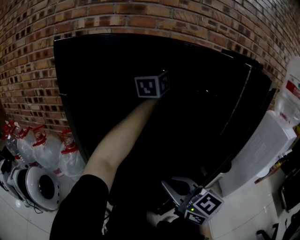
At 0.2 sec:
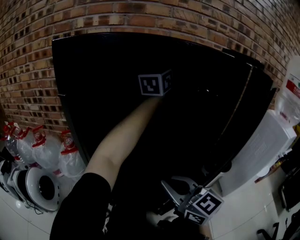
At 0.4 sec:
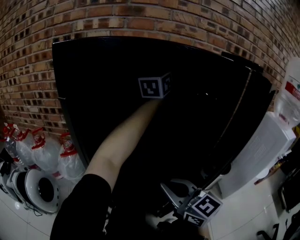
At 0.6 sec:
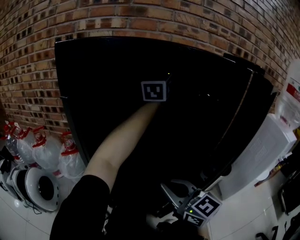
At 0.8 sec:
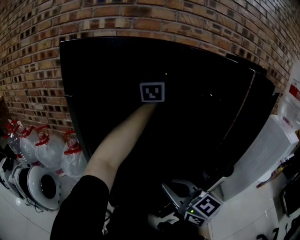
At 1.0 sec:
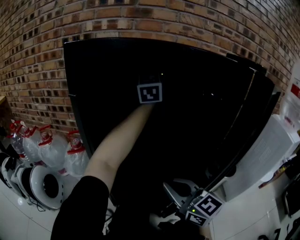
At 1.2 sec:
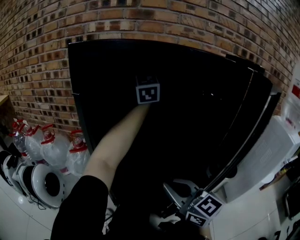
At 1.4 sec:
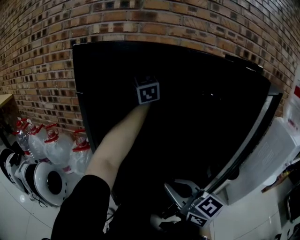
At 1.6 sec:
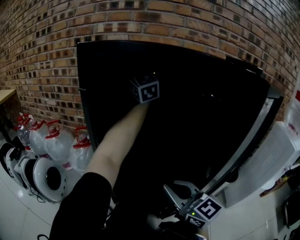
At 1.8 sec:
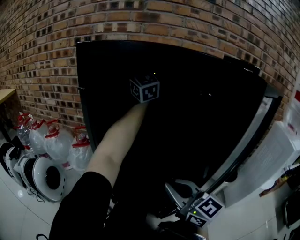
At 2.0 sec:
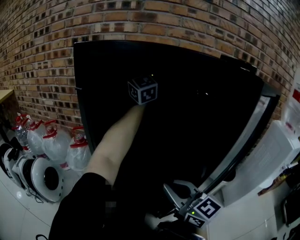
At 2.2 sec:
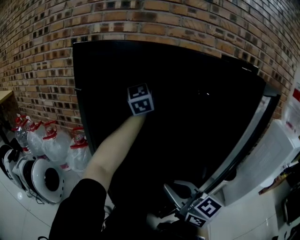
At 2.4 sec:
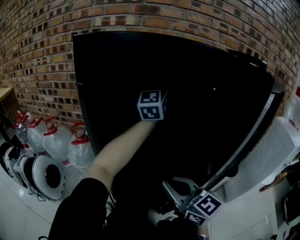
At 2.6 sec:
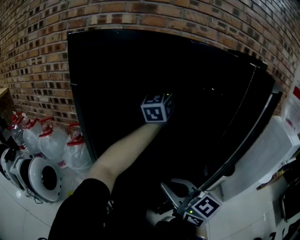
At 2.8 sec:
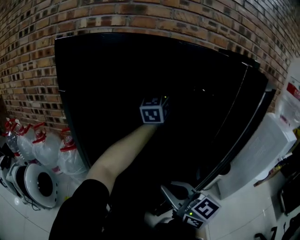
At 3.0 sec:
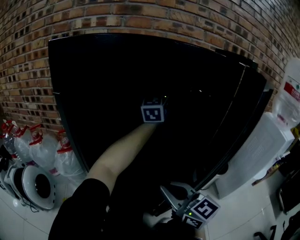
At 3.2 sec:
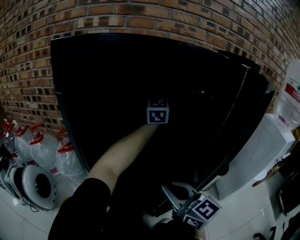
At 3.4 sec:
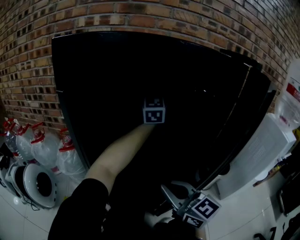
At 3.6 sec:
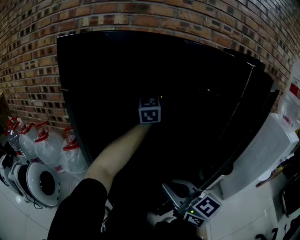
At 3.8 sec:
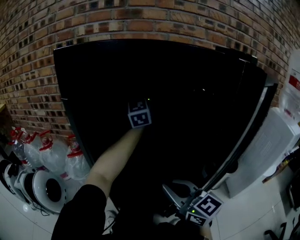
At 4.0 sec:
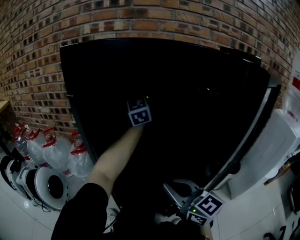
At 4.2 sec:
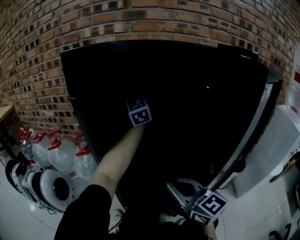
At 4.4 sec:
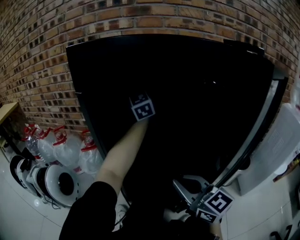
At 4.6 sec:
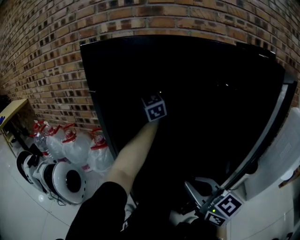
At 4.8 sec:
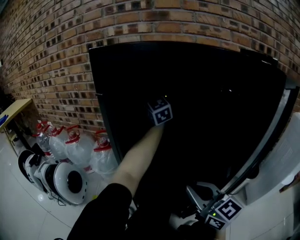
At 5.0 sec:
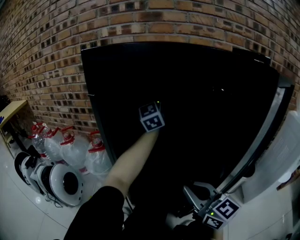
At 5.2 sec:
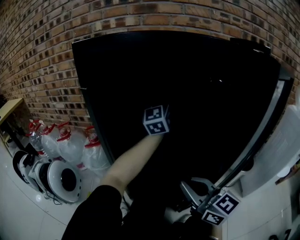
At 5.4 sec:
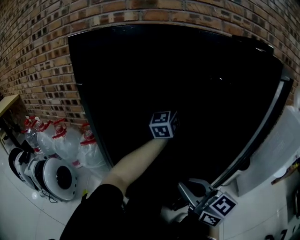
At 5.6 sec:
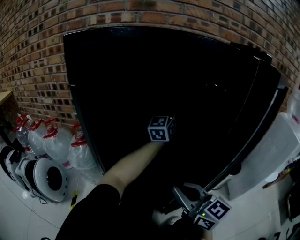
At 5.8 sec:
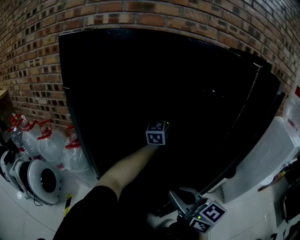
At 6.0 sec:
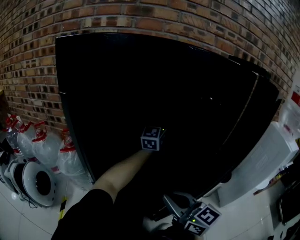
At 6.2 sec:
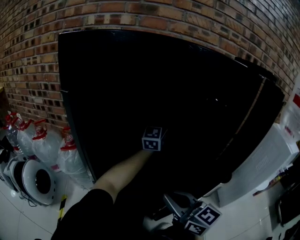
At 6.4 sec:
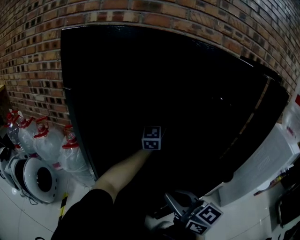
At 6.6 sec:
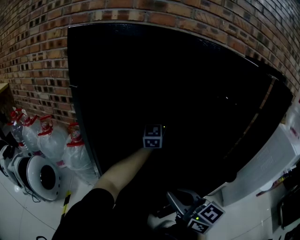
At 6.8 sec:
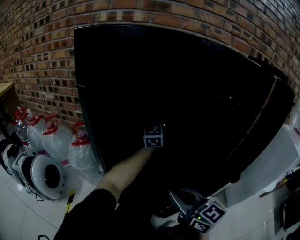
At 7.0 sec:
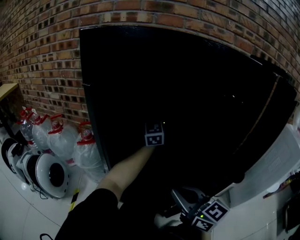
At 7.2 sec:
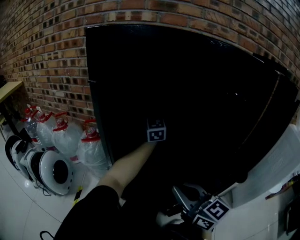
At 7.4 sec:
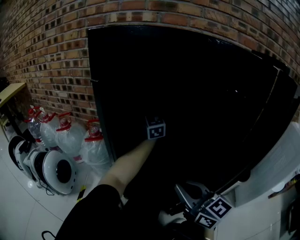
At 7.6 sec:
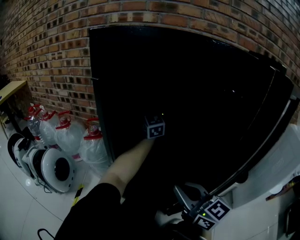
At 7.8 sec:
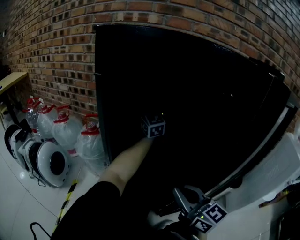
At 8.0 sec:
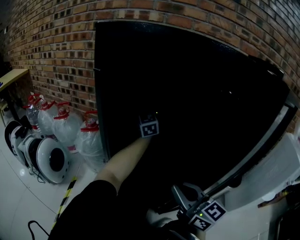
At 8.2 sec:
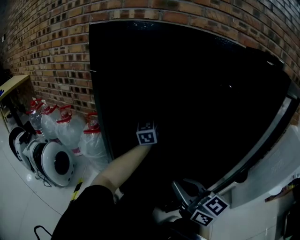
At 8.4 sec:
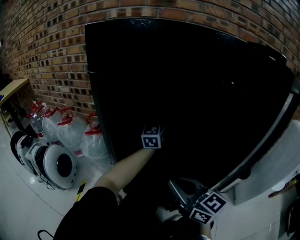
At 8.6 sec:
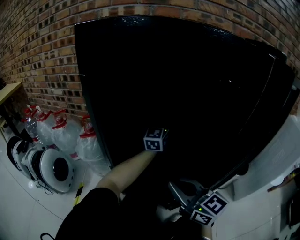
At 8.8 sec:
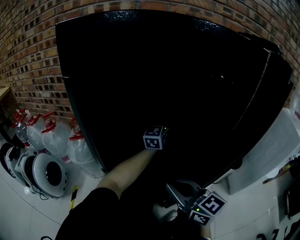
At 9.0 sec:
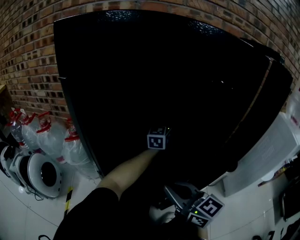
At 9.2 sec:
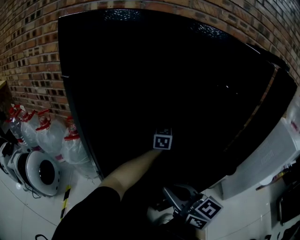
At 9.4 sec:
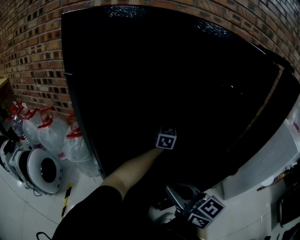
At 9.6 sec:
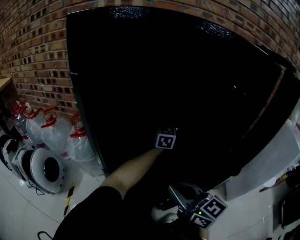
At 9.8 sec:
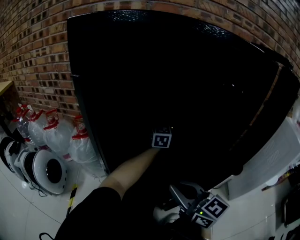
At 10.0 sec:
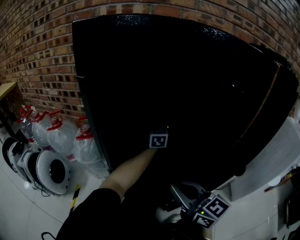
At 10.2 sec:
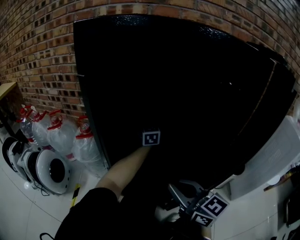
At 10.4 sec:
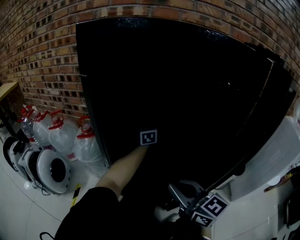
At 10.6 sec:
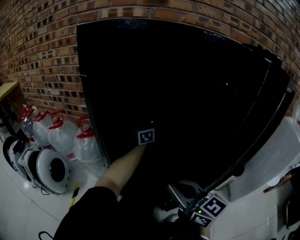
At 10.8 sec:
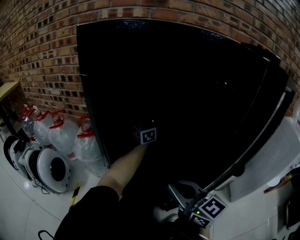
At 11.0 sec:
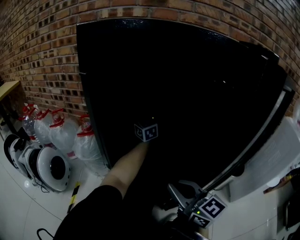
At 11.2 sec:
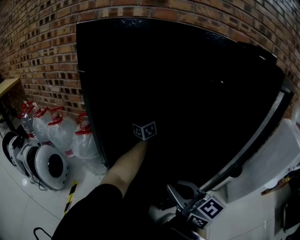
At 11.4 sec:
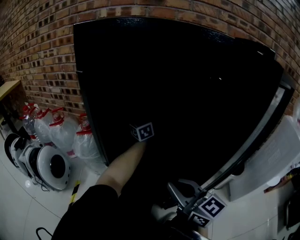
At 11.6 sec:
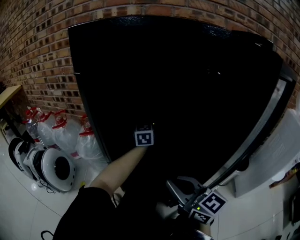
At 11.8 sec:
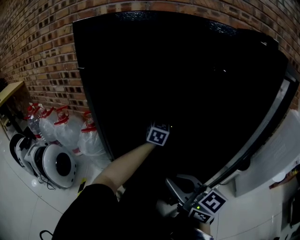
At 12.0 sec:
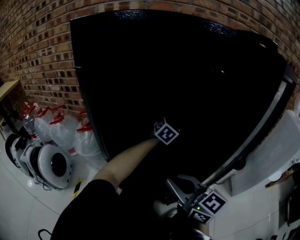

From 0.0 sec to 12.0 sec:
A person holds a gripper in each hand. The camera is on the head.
From 0.0 sec to 1.6 sec: The left gripper moves some 15 cm, and rotates some 50 degrees.
From 1.6 sec to 3.0 sec: The left gripper shifts roughly 20 cm to the right and downward, and turns by about 40 degrees.
From 3.0 sec to 4.4 sec: The left gripper heads to the left, covering about 15 cm, and changes its angle by approximately 30 degrees.
From 4.4 sec to 6.0 sec: The left gripper goes about 20 cm to the right and downward, and rotates roughly 30 degrees.
From 6.0 sec to 7.6 sec: The left gripper shifts approximately 15 cm to the left, and swivels some 40 degrees.
From 7.6 sec to 9.0 sec: The left gripper heads to the right, downward and backward, covering approximately 20 cm, and rotates some 40 degrees.
From 9.0 sec to 10.4 sec: The left gripper moves to the left and forward, approximately 15 cm, and turns by approximately 30 degrees.
From 10.4 sec to 12.0 sec: The left gripper changes place by approximately 20 cm, and swivels roughly 50 degrees.

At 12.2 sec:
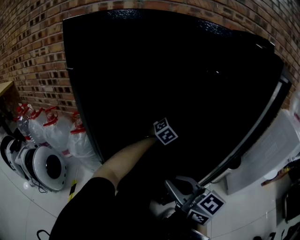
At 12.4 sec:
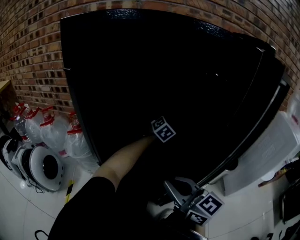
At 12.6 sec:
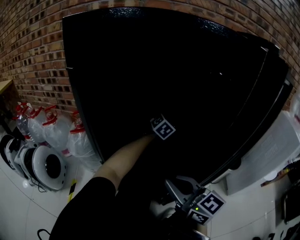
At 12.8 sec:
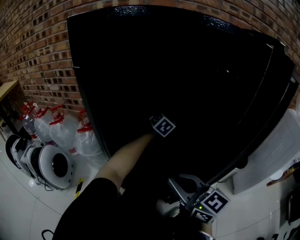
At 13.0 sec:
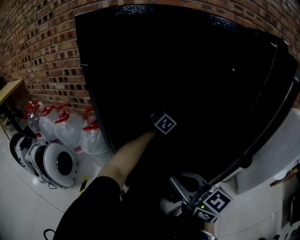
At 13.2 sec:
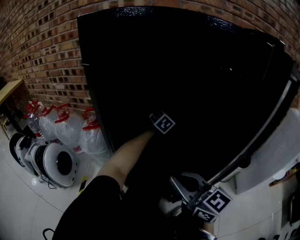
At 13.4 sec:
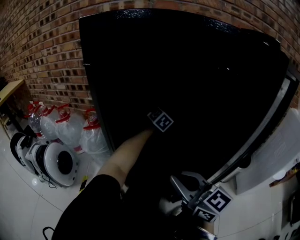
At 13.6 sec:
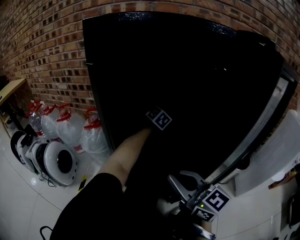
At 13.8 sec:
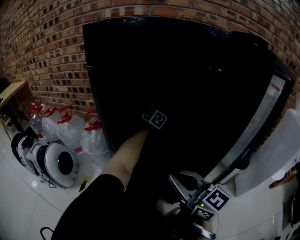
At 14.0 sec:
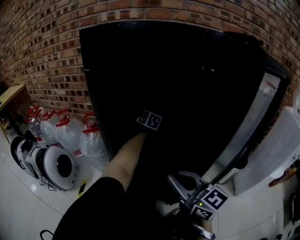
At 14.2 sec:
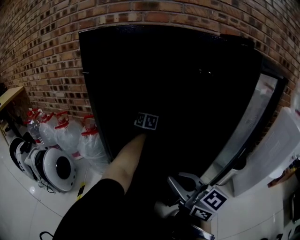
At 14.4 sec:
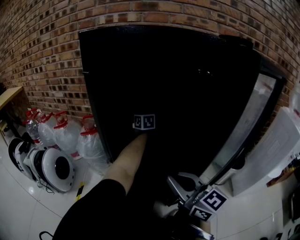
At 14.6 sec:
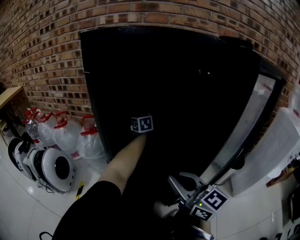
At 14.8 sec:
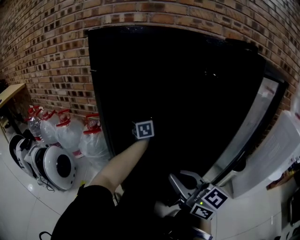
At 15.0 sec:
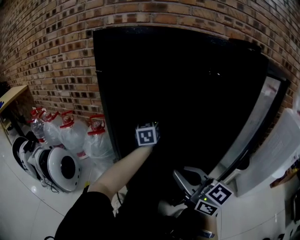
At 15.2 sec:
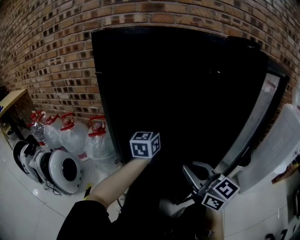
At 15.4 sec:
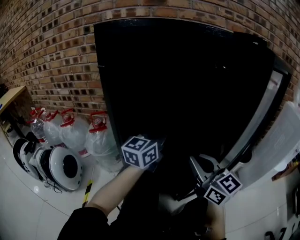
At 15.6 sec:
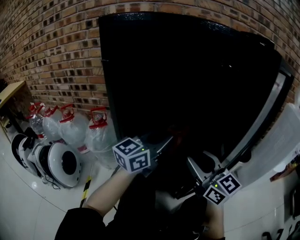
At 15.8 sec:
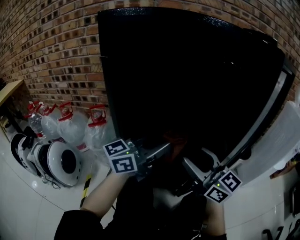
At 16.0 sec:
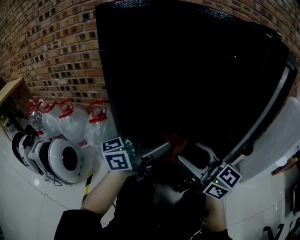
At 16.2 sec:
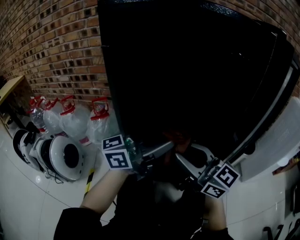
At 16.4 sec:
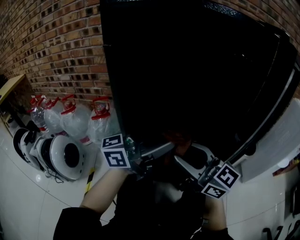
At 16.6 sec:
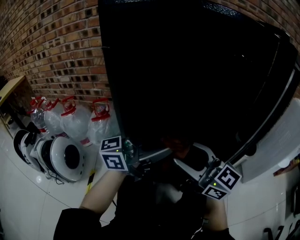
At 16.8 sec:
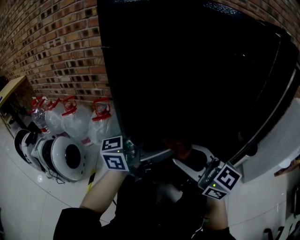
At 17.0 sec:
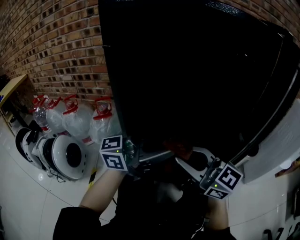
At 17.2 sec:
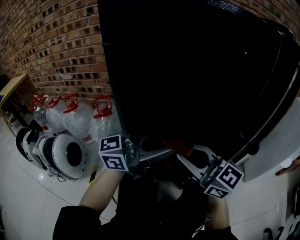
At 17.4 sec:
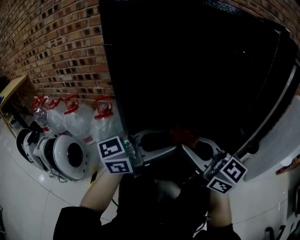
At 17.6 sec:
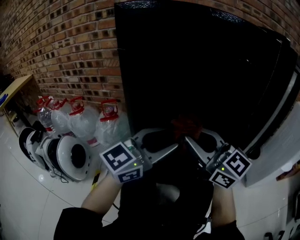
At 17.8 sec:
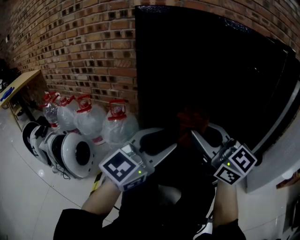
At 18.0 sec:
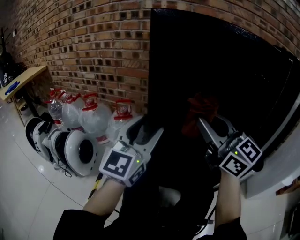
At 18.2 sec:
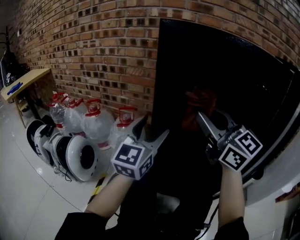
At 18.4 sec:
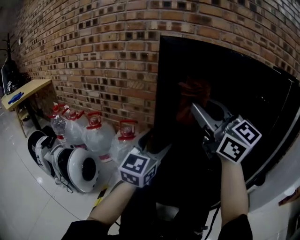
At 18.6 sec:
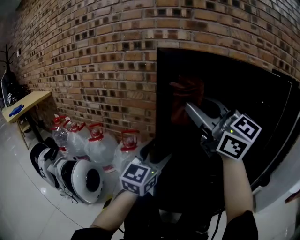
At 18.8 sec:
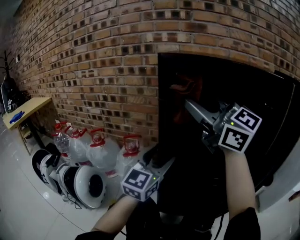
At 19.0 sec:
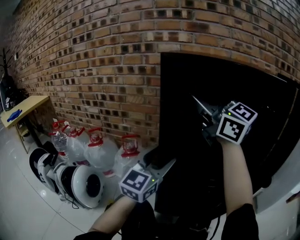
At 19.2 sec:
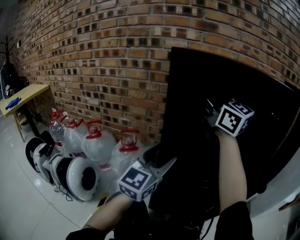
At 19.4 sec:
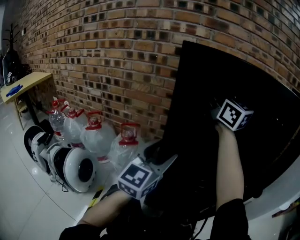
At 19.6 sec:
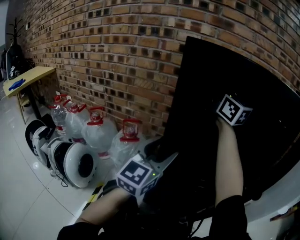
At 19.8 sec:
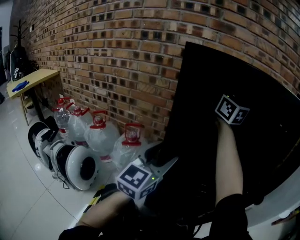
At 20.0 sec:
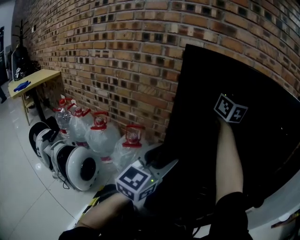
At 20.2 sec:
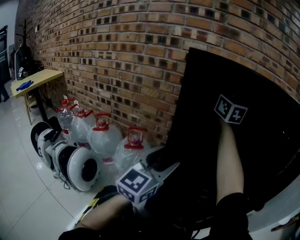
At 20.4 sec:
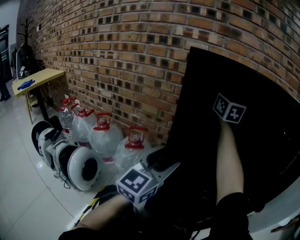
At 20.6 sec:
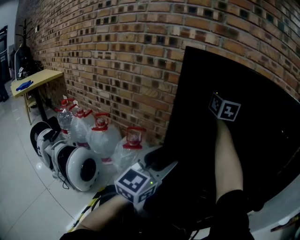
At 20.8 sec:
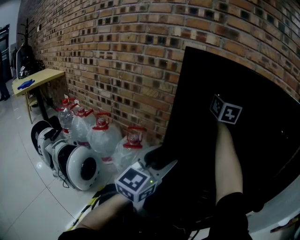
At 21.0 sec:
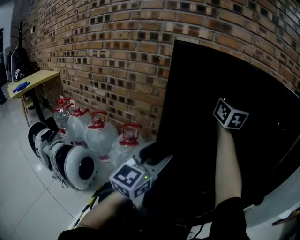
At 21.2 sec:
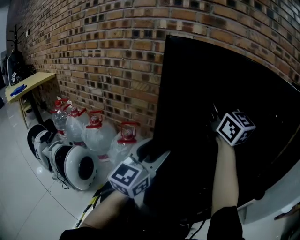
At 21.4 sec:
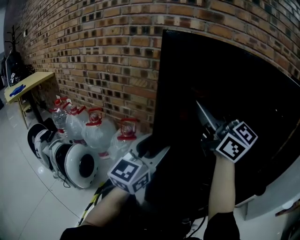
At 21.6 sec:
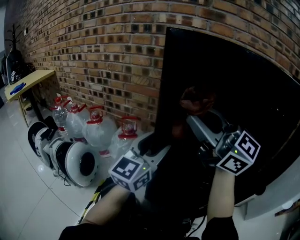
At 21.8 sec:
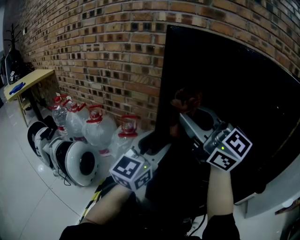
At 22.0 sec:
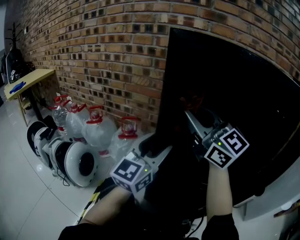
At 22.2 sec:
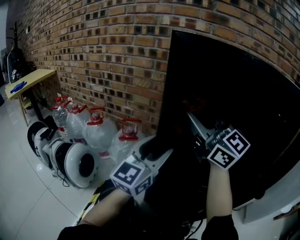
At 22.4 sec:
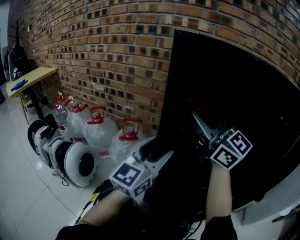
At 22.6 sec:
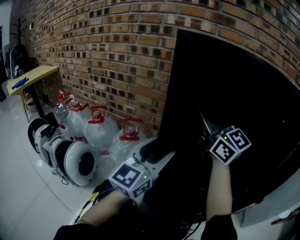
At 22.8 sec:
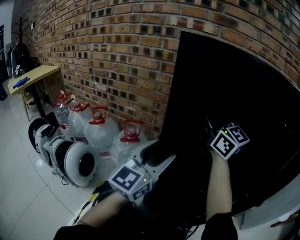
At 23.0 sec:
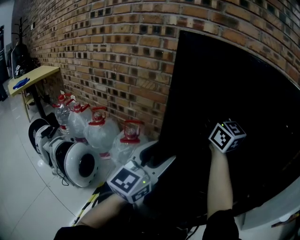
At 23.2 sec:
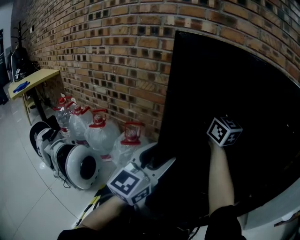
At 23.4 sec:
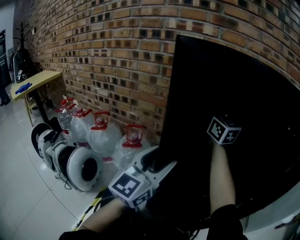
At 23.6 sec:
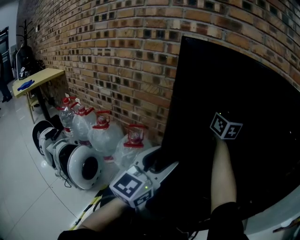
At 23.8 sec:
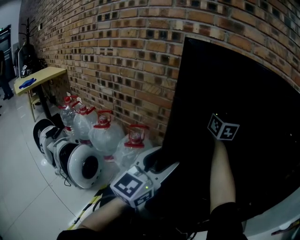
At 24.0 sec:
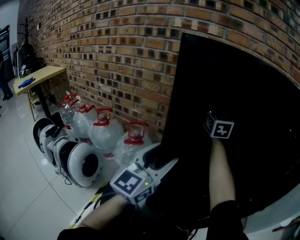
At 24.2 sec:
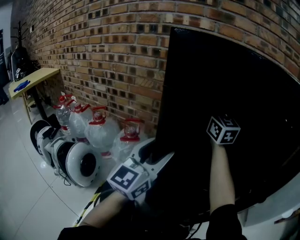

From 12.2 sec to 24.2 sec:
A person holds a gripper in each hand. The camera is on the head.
From 12.2 sec to 13.8 sec: The left gripper heads to the left and forward, covering roughly 20 cm, and turns by about 30 degrees.
From 13.8 sec to 15.2 sec: The left gripper moves backward and upward, about 20 cm, and angles its fingers upward, by some 30 degrees.
From 15.2 sec to 16.6 sec: The left gripper changes place by roughly 20 cm, and swivels about 70 degrees, while the right gripper ends up approximately 5 cm from where it was, and opens its fingers.
From 16.6 sec to 18.2 sec: The right gripper is displaced upward by about 15 cm, and closes up. The left gripper ends up roughly 15 cm from where it was, turns by approximately 70 degrees, and opens up.
From 18.2 sec to 19.8 sec: The right gripper moves forward and upward, approximately 25 cm.
From 19.8 sec to 21.2 sec: The right gripper heads backward, covering roughly 10 cm.
From 21.2 sec to 22.6 sec: The right gripper heads to the left, covering roughly 5 cm, and reaches about 10 cm backward, then returns.
From 22.6 sec to 24.2 sec: The right gripper goes about 15 cm forward and to the right, and swivels some 20 degrees.
